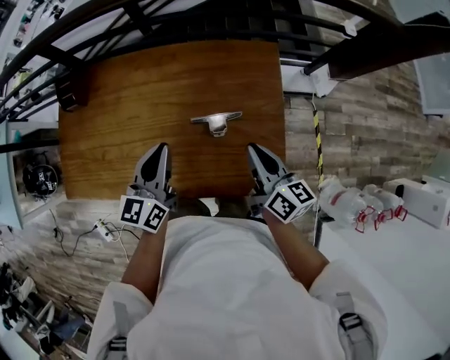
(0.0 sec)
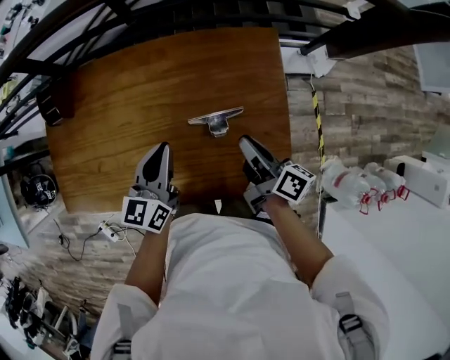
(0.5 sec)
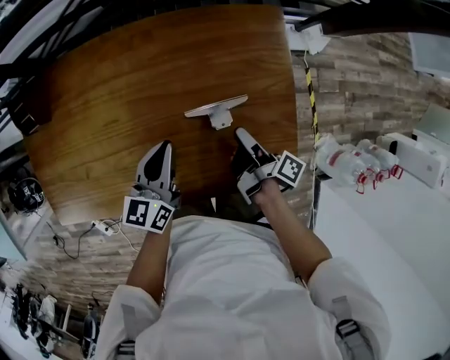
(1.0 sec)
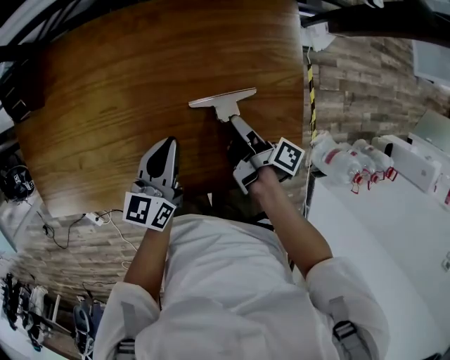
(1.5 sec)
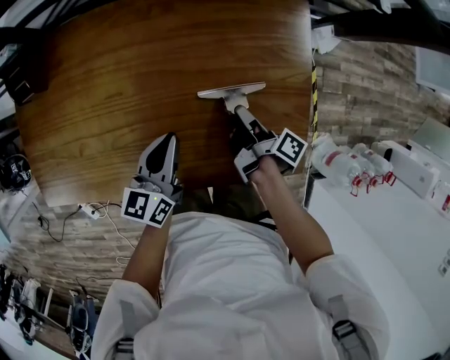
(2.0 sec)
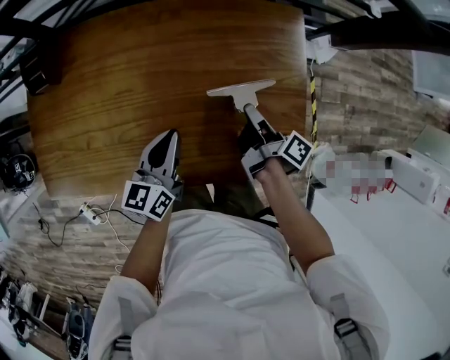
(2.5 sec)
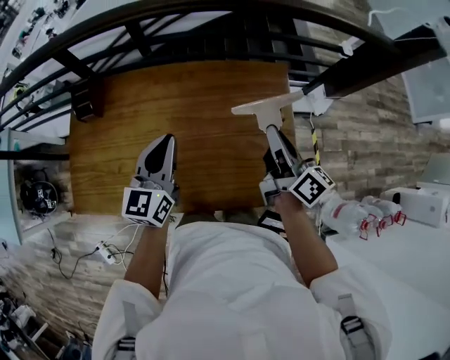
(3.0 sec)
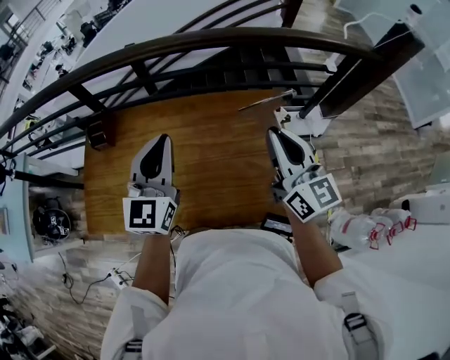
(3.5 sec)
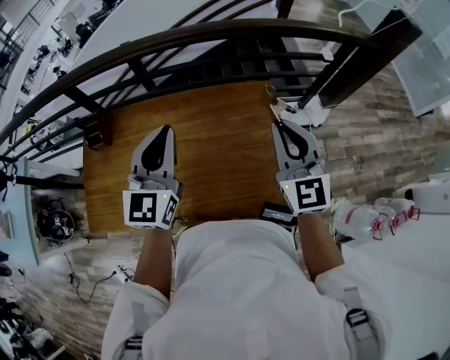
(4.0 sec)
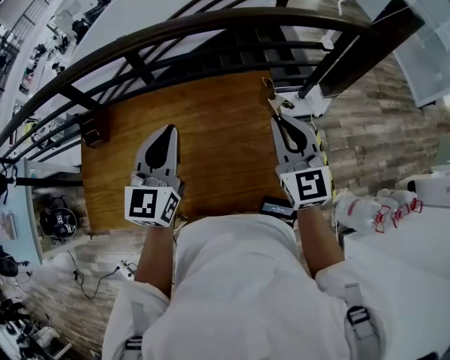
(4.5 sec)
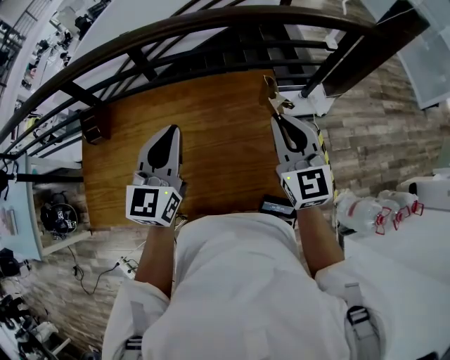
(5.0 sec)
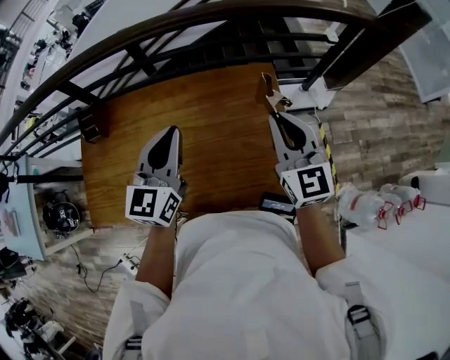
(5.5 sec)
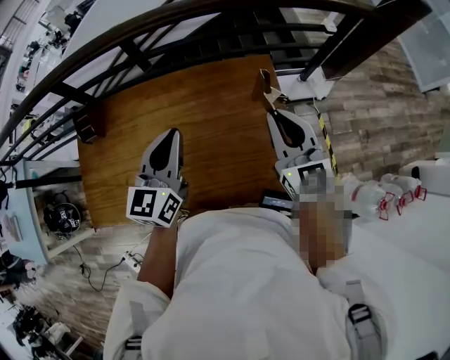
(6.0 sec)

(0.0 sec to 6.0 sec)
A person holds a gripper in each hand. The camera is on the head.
0.0 sec - 2.0 sec: Both grippers travel together downward, approximately 20 cm. The right gripper twists approximately 50 degrees clockwise, seen from behind, and opens and closes again.
2.0 sec - 4.0 sec: The two grippers go roughly 35 cm upward. The left gripper rotates about 40 degrees. The right gripper rolls counterclockwise, seen from behind, by approximately 110 degrees.
4.0 sec - 6.0 sec: The left gripper shifts approximately 10 cm downward; the right gripper heads downward, covering roughly 5 cm.

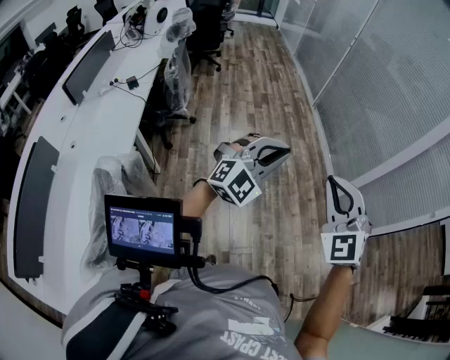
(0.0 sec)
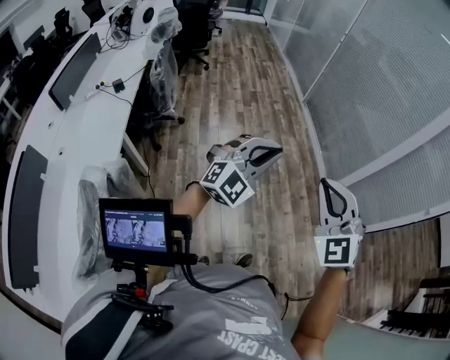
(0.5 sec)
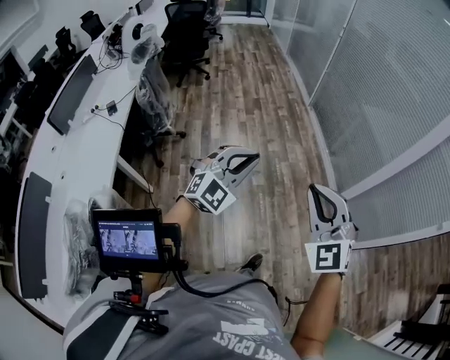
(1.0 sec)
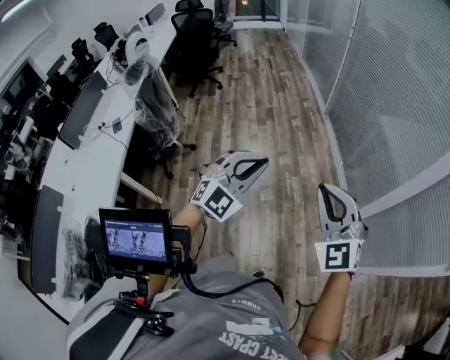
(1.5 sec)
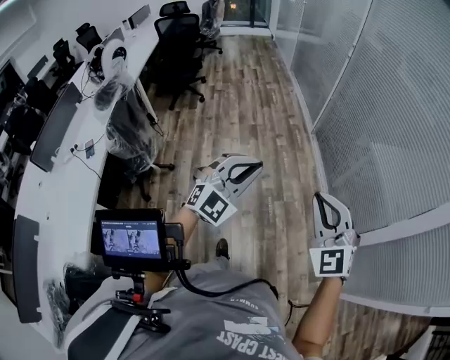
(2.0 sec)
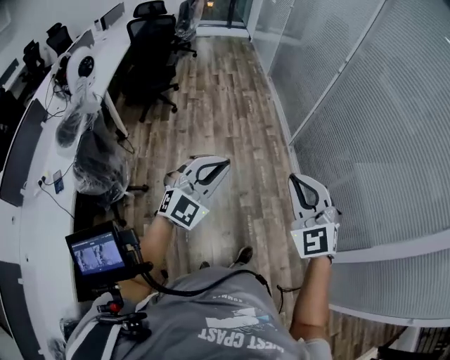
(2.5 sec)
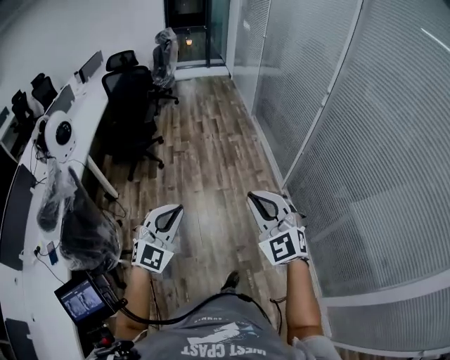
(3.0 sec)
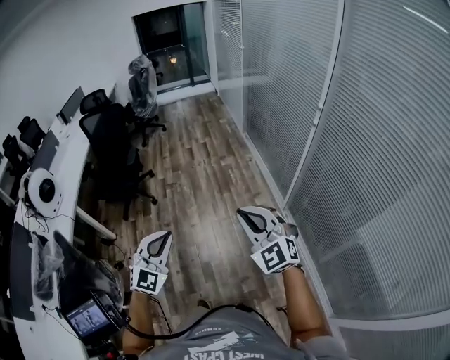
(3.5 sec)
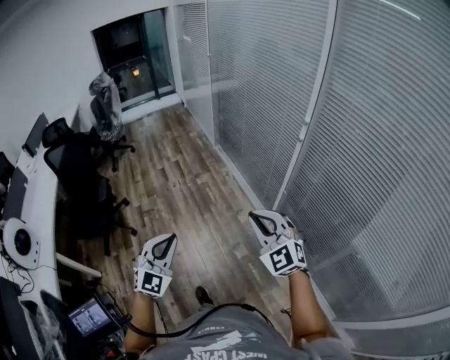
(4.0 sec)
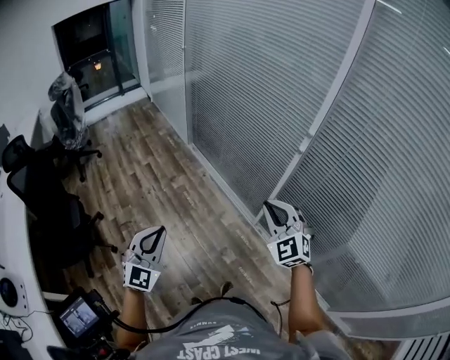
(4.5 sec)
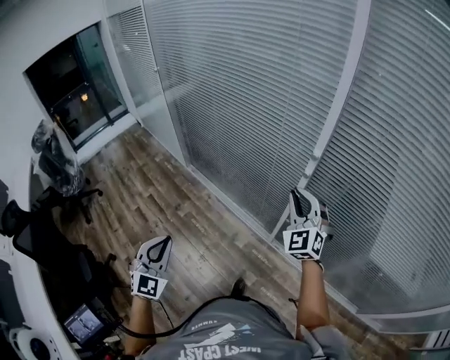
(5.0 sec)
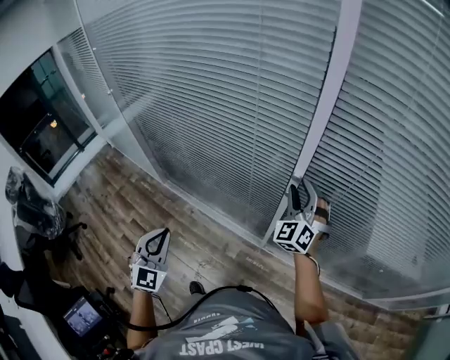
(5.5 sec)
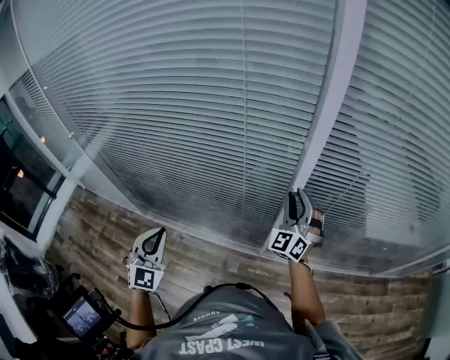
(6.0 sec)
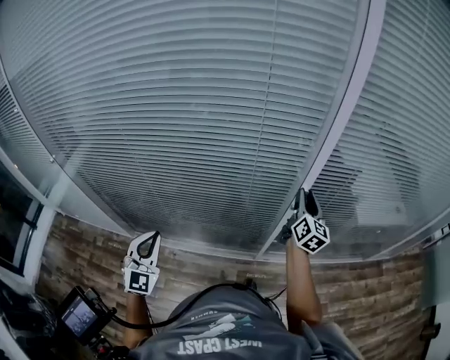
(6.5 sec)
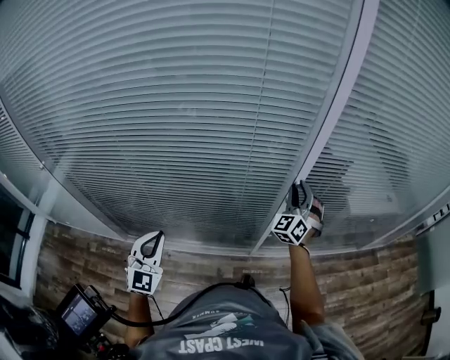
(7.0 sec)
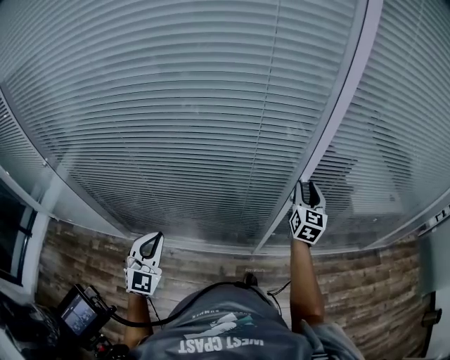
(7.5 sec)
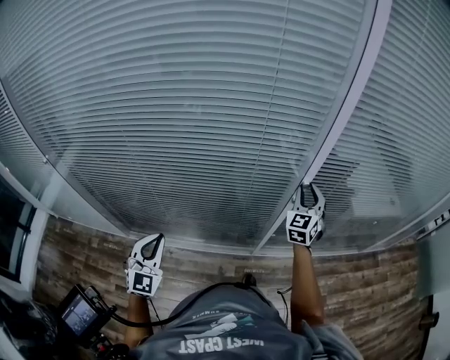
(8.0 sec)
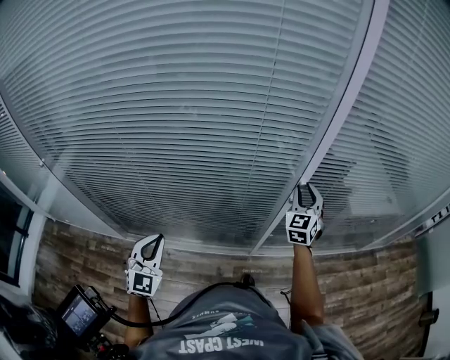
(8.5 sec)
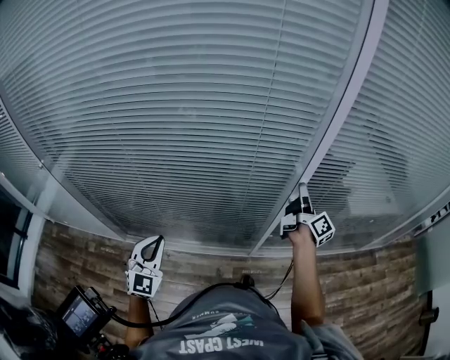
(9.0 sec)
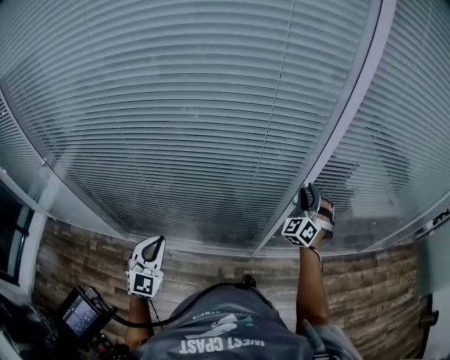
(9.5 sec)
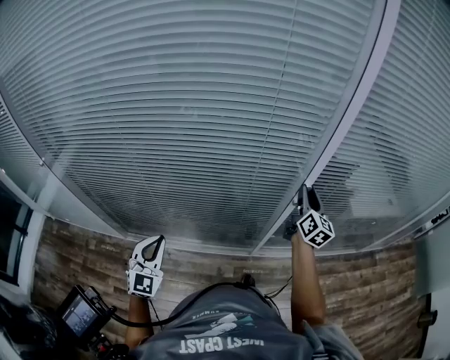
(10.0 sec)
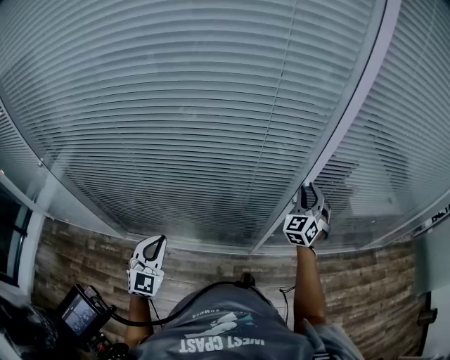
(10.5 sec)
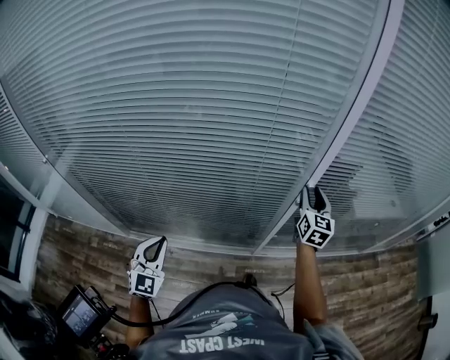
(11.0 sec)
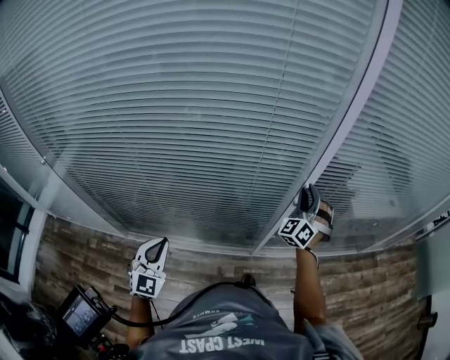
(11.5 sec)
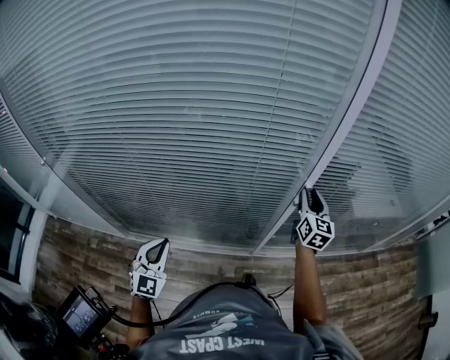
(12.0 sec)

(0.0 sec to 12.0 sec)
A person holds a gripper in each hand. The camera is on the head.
0.0 sec - 2.0 sec: Both grippers are carried forward, approximately 60 cm.
2.0 sec - 4.0 sec: The two grippers travel together, forward, some 90 cm.
4.0 sec - 6.0 sec: The right gripper rotates some 50 degrees, and opens its fingers.
6.0 sec - 8.0 sec: The right gripper travels to the right and back again, about 10 cm each way, and changes its angle by approximately 30 degrees; the left gripper travels to the left by some 10 cm.
8.0 sec - 10.0 sec: The right gripper rolls clockwise, seen from behind, by approximately 60 degrees.

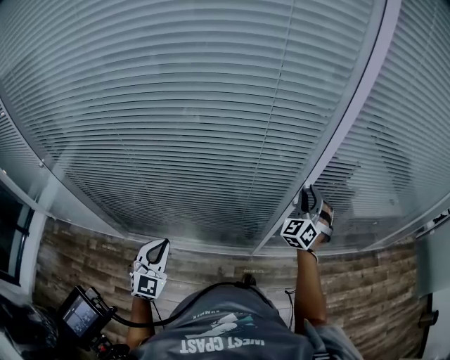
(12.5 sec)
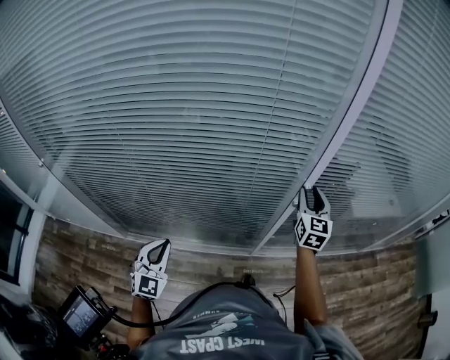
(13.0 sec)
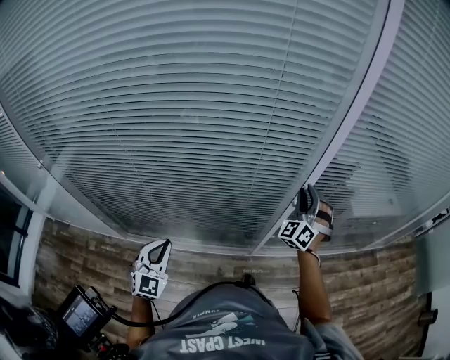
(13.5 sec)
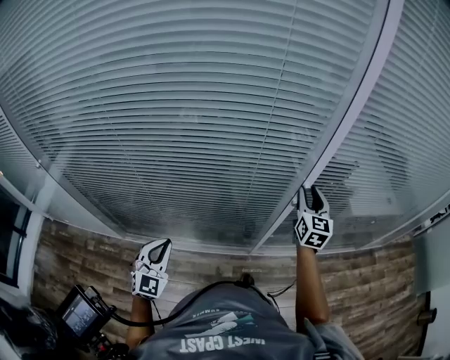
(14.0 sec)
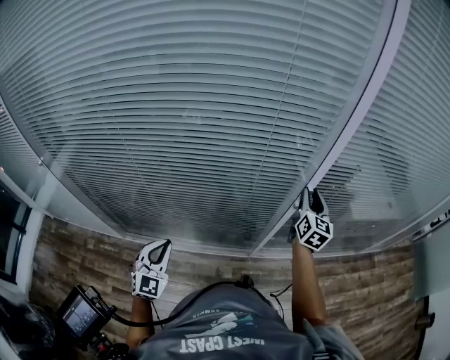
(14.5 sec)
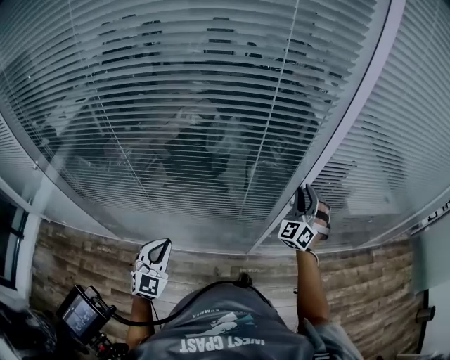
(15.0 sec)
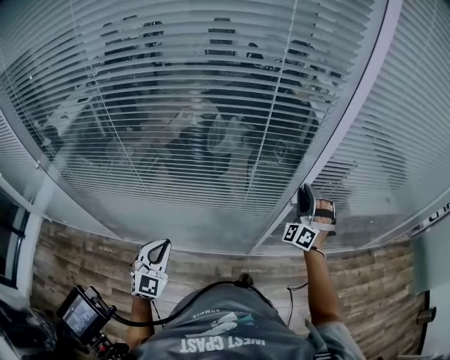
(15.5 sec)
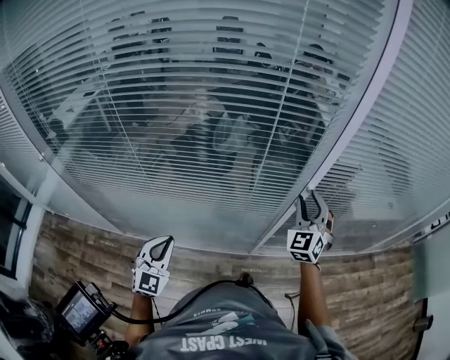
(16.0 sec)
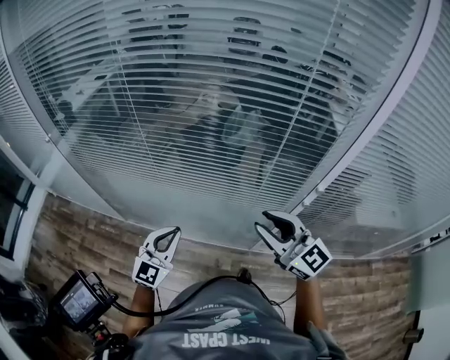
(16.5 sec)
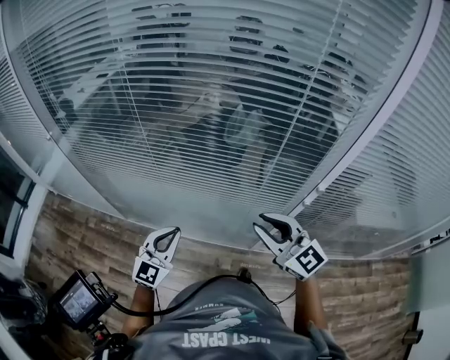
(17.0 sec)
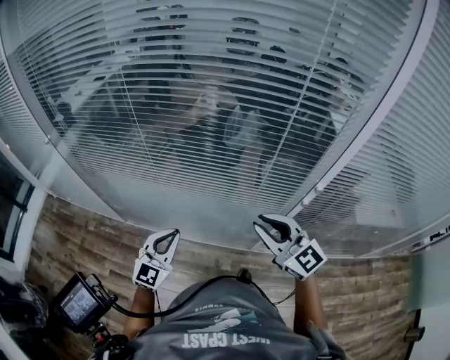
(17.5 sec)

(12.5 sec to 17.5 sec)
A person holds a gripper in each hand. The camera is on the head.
15.0 sec - 17.5 sec: The right gripper changes place by roughly 25 cm, and swivels some 80 degrees.

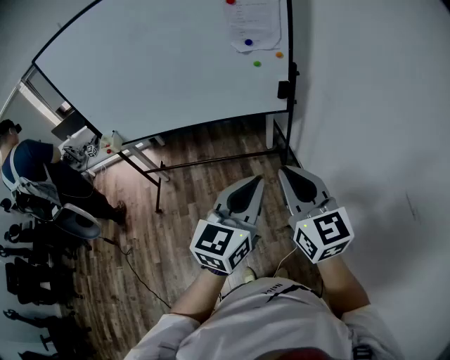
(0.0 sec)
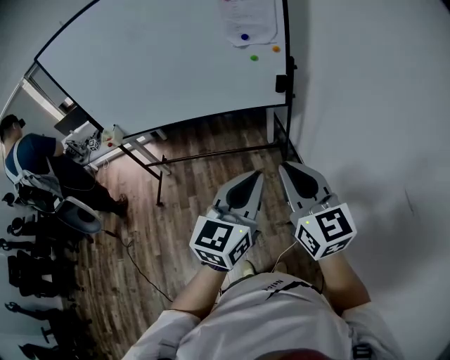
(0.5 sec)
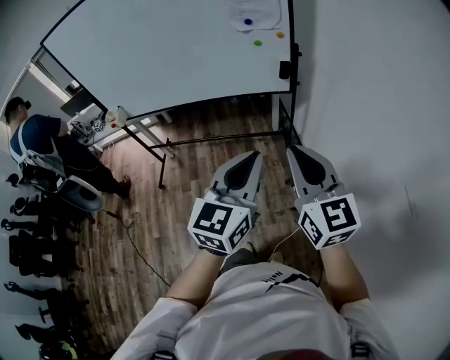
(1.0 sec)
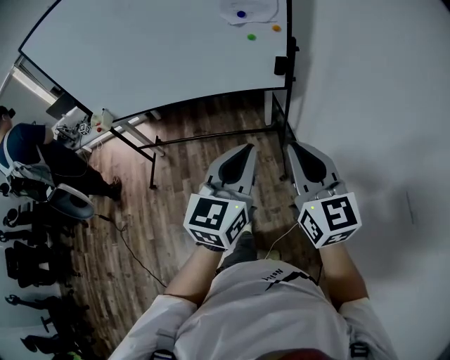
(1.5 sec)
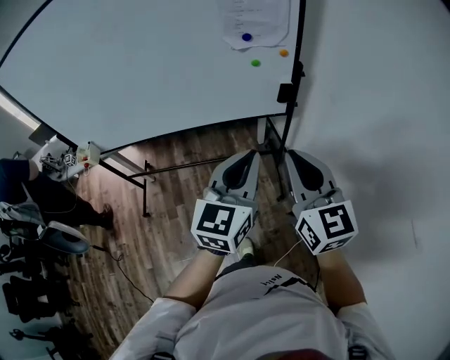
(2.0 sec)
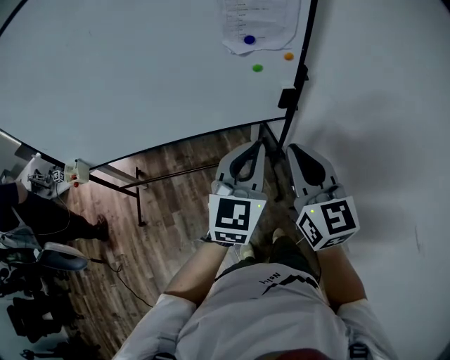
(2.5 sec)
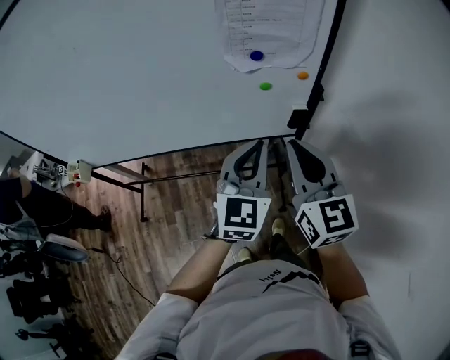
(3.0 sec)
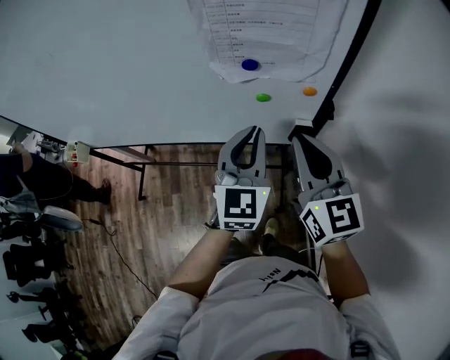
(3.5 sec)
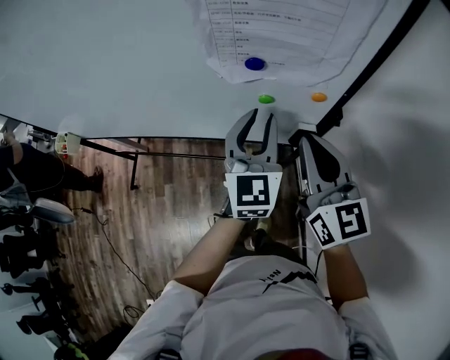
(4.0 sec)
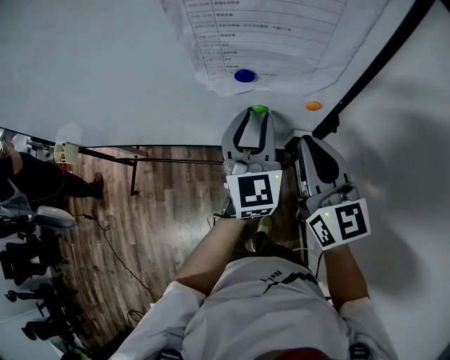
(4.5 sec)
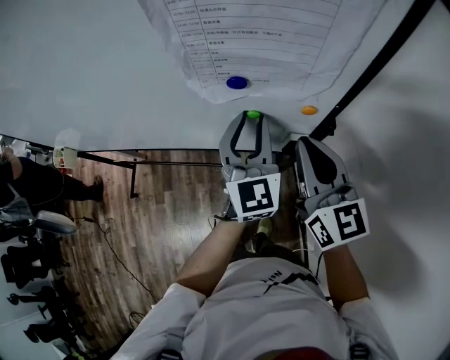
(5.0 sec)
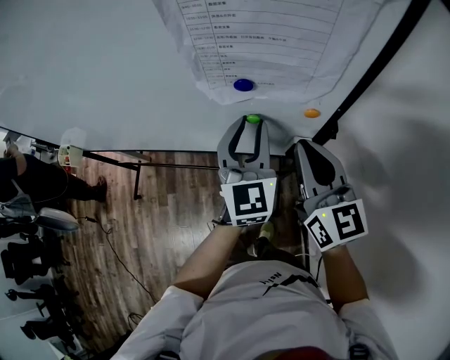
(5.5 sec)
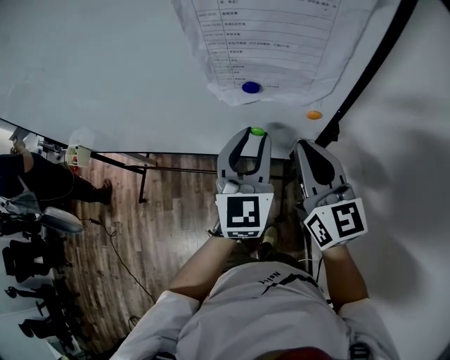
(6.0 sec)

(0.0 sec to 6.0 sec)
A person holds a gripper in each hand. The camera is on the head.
0.0 sec - 2.0 sec: Both grippers move forward, about 20 cm.
2.0 sec - 4.0 sec: Both grippers travel together forward, roughly 35 cm. The left gripper changes its angle by about 30 degrees, and opens.
4.0 sec - 6.0 sec: There are only small adjustments of the grippers.
